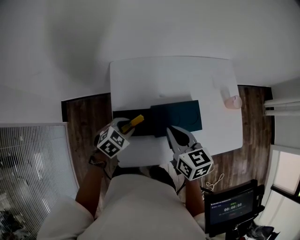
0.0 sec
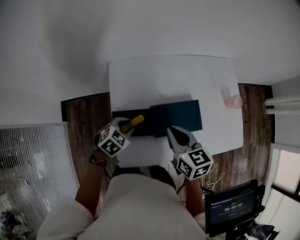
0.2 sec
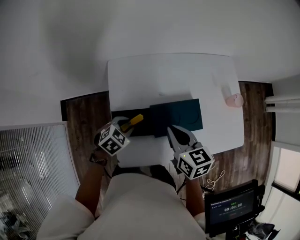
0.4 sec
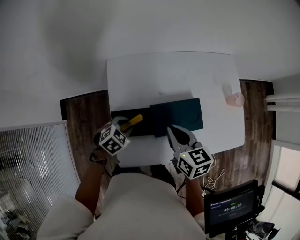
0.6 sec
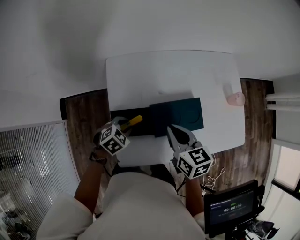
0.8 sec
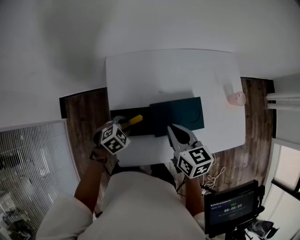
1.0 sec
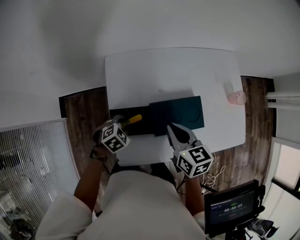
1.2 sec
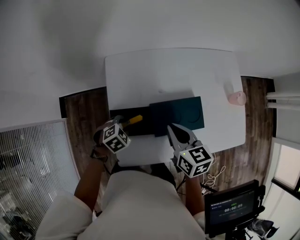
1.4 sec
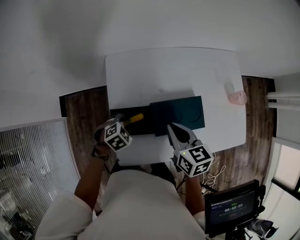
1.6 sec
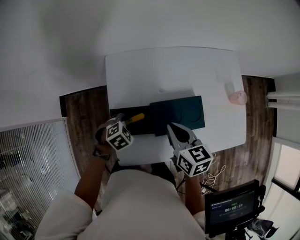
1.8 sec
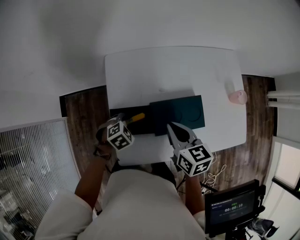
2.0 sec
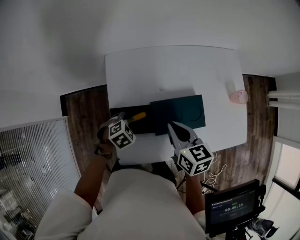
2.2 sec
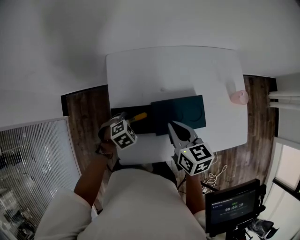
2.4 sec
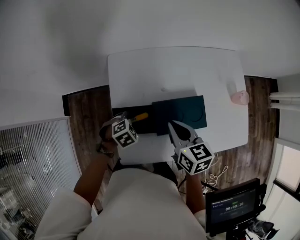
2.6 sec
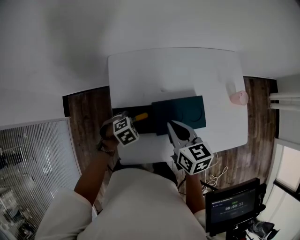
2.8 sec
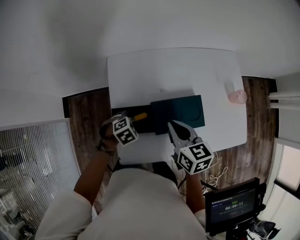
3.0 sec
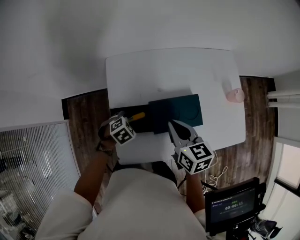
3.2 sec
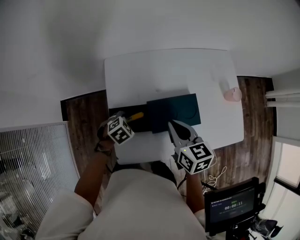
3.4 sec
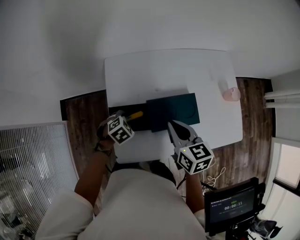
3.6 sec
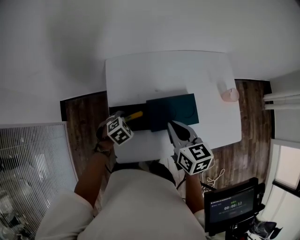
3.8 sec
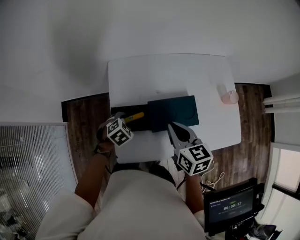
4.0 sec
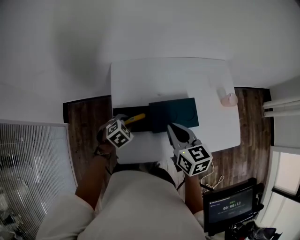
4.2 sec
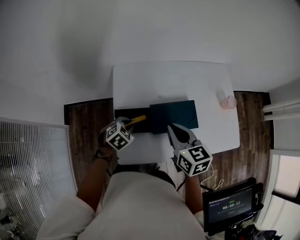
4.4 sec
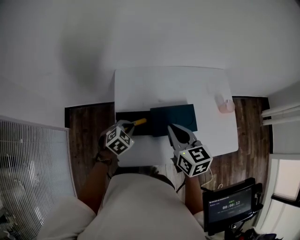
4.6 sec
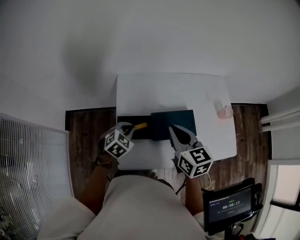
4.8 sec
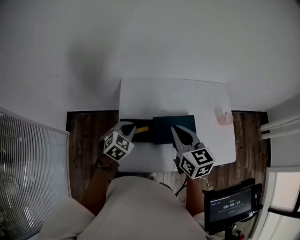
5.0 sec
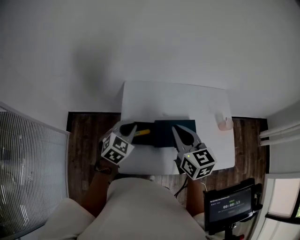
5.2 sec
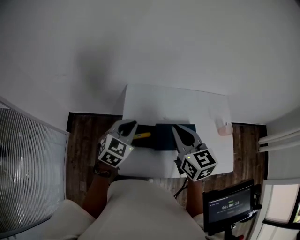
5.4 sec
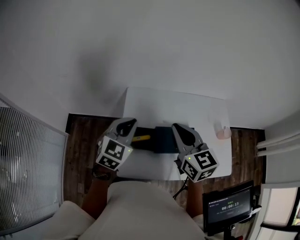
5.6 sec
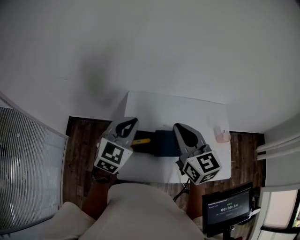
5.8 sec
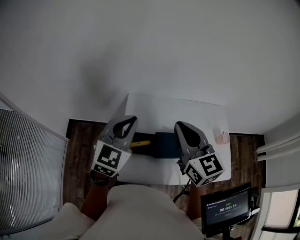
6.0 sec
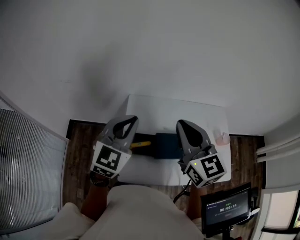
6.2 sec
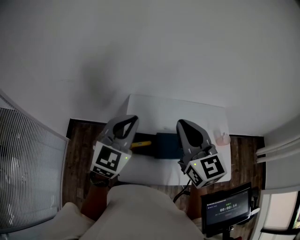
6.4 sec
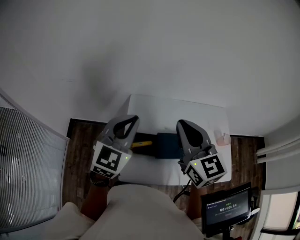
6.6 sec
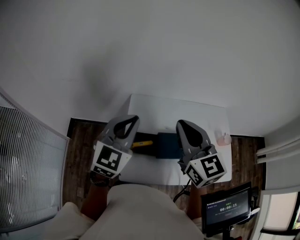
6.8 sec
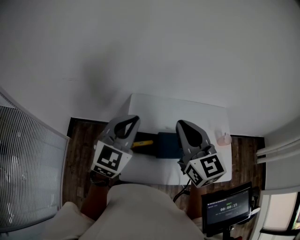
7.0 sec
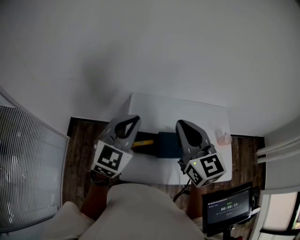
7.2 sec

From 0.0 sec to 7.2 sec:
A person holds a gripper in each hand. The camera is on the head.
From 0.0 sec to 1.4 sec: The left gripper travels downward by about 5 cm.
From 1.4 sec to 4.4 sec: The grippers make only small movements.
From 4.4 sec to 5.8 sec: The right gripper travels upward by roughly 15 cm, and swivels about 30 degrees. The left gripper moves upward, roughly 25 cm, and tips its fingers upward by roughly 40 degrees.
From 5.8 sec to 7.2 sec: The left gripper is displaced upward by approximately 5 cm.

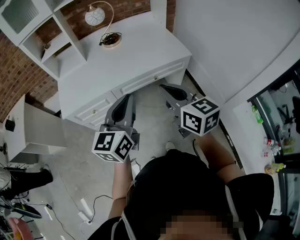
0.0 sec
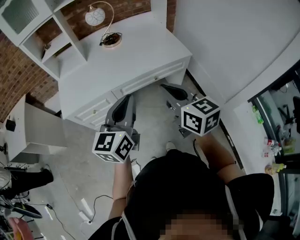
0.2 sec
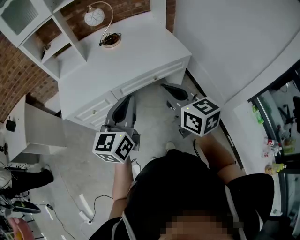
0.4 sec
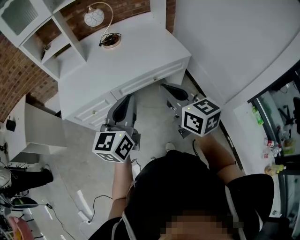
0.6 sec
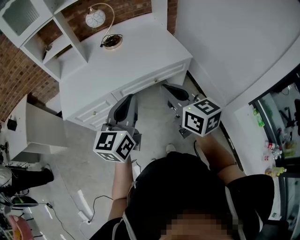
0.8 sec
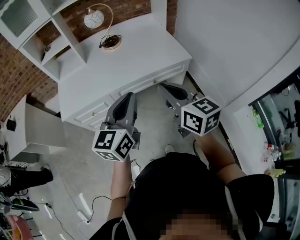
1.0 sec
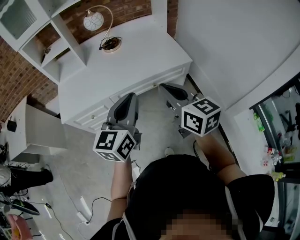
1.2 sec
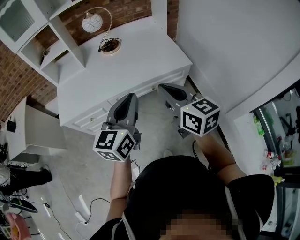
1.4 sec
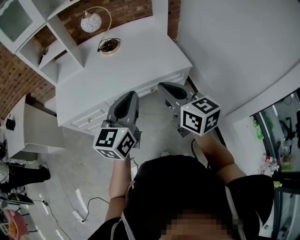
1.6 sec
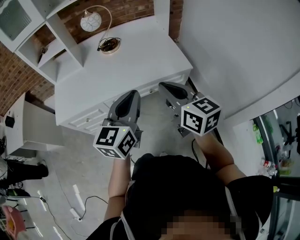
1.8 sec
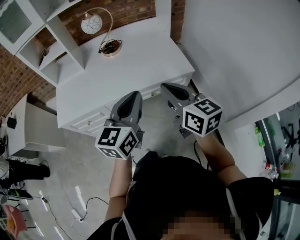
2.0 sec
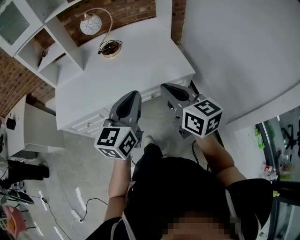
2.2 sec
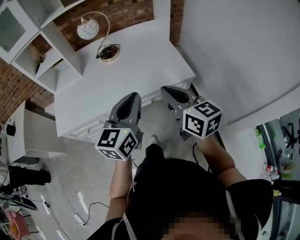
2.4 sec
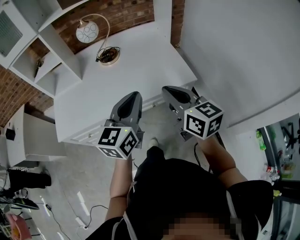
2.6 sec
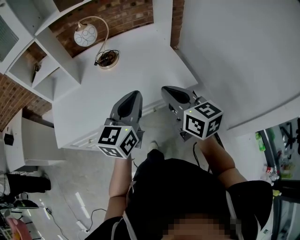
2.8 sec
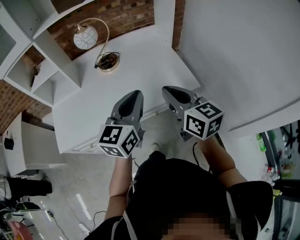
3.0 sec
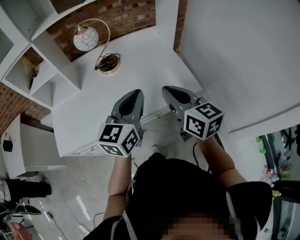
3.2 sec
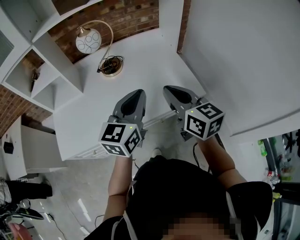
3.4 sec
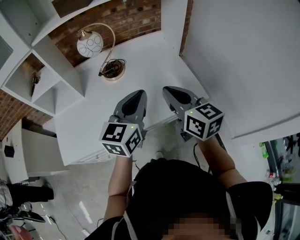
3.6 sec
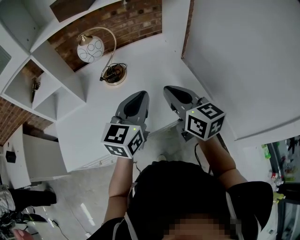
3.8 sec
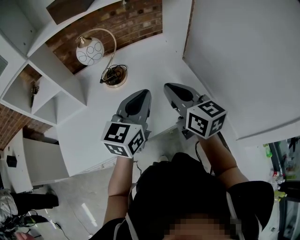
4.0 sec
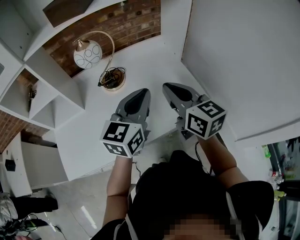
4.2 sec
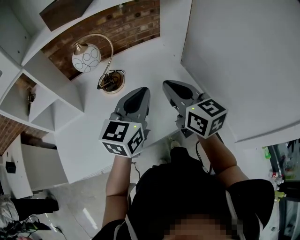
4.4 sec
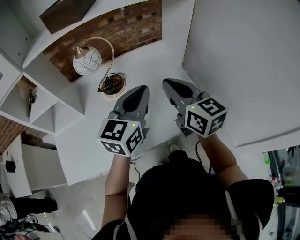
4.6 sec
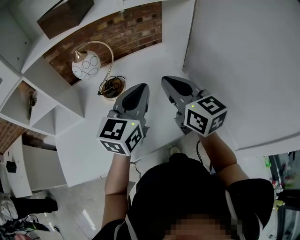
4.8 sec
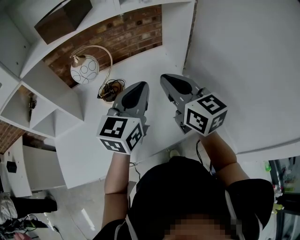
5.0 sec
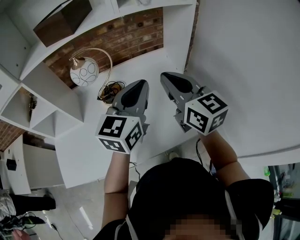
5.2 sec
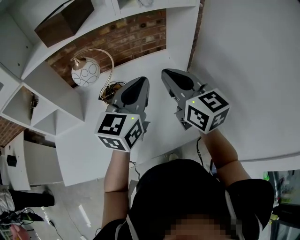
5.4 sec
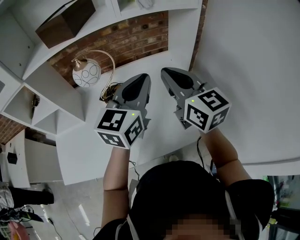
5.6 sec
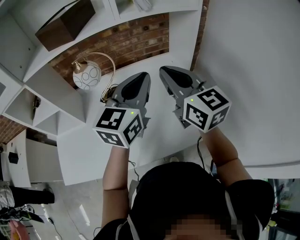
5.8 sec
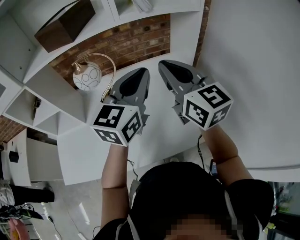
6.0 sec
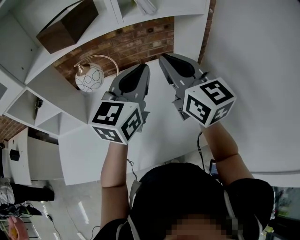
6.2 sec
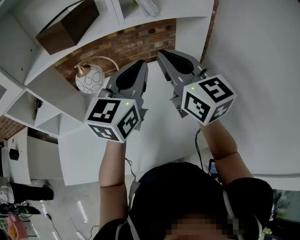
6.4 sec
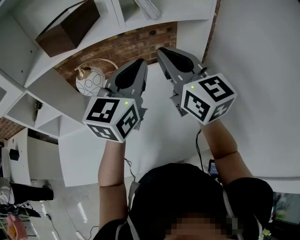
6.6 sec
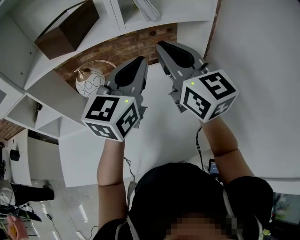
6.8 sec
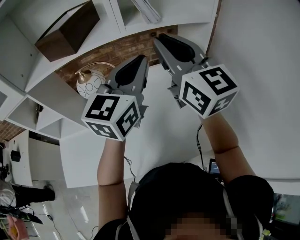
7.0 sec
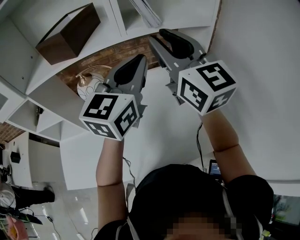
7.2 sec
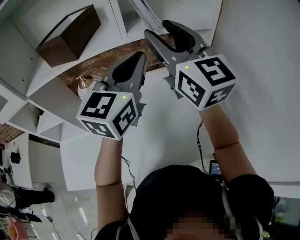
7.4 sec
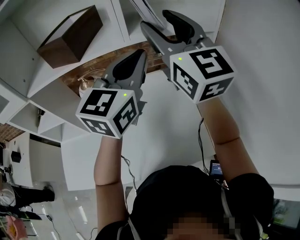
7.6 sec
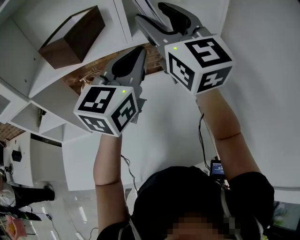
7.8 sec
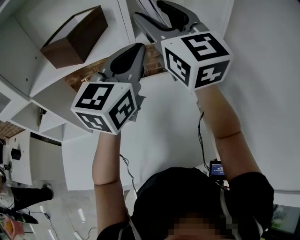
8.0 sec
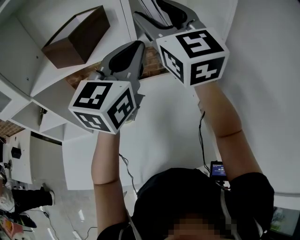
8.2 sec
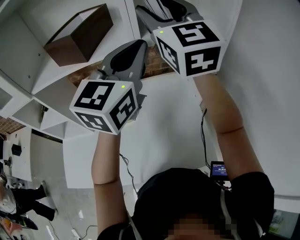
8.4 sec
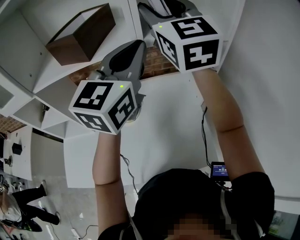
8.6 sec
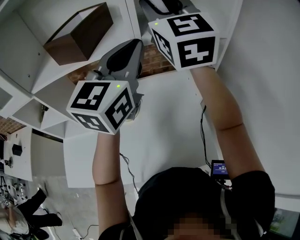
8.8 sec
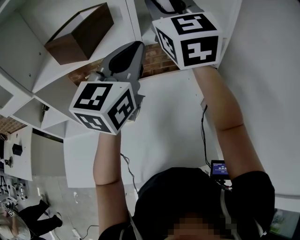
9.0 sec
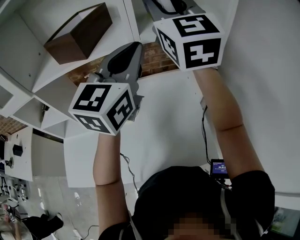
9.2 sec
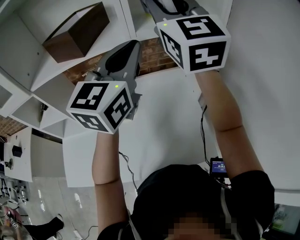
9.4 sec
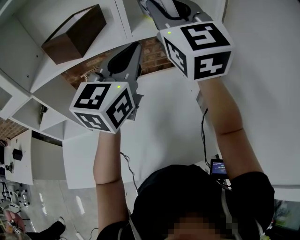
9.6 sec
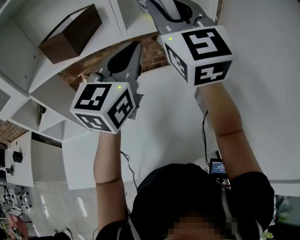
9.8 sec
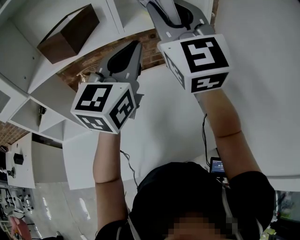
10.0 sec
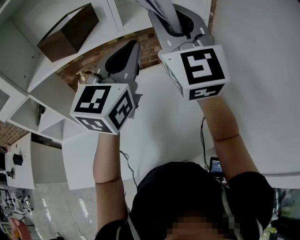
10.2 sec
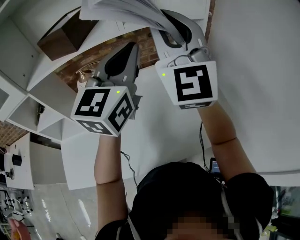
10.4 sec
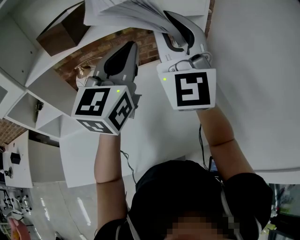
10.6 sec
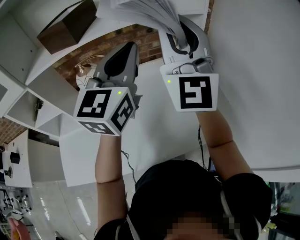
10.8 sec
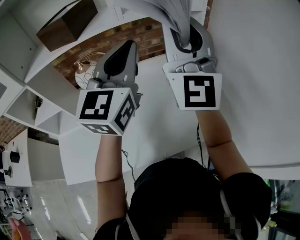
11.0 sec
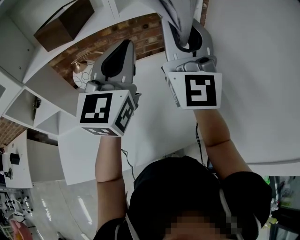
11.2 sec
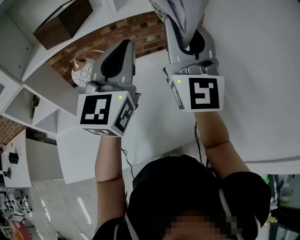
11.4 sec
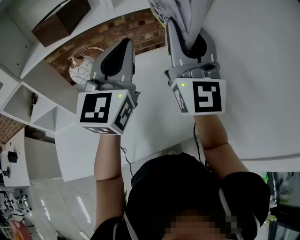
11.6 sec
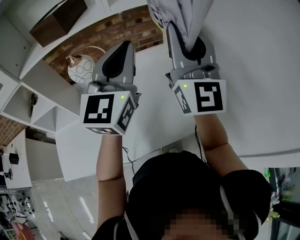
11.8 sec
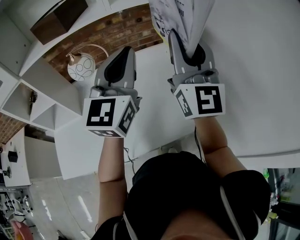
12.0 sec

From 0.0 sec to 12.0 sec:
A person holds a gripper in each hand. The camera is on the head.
From 0.0 sec to 1.6 sec: The right gripper heads forward and to the right, covering approximately 10 cm. Meanwhile the left gripper is displaced to the right and forward by about 10 cm.
From 1.6 sec to 3.0 sec: Both grippers travel together forward, some 15 cm.
From 3.0 sec to 4.4 sec: Both grippers move forward, some 15 cm.
From 4.4 sec to 6.0 sec: The right gripper goes approximately 15 cm forward and upward; the left gripper travels forward, upward and to the right by roughly 15 cm.
From 6.0 sec to 7.6 sec: Both grippers move upward and forward, approximately 15 cm. The right gripper swivels approximately 20 degrees, and opens.
From 7.6 sec to 9.0 sec: The right gripper shifts approximately 5 cm forward, and closes.
From 9.0 sec to 10.4 sec: The right gripper heads backward and to the right, covering about 15 cm; the left gripper is displaced backward by about 5 cm.
From 10.4 sec to 12.0 sec: The right gripper heads downward, backward and to the right, covering approximately 15 cm, while the left gripper shifts roughly 10 cm backward and downward.

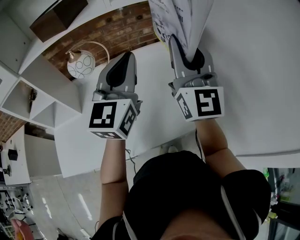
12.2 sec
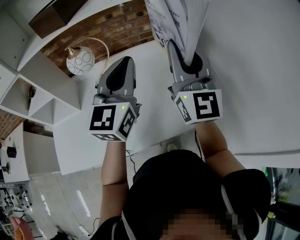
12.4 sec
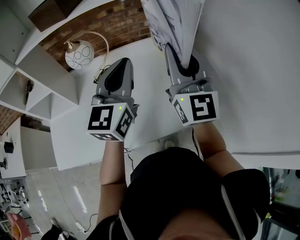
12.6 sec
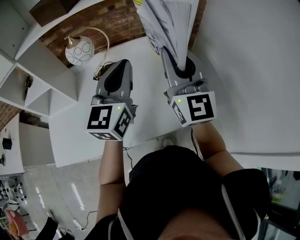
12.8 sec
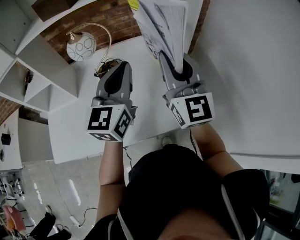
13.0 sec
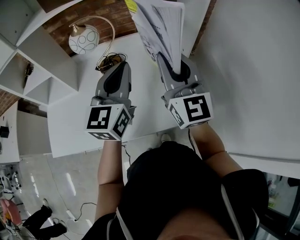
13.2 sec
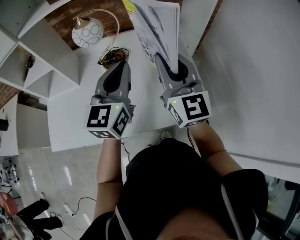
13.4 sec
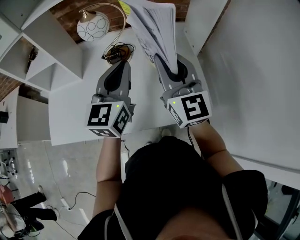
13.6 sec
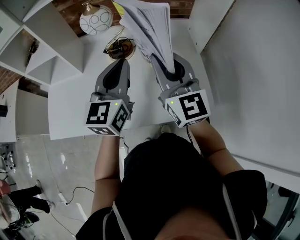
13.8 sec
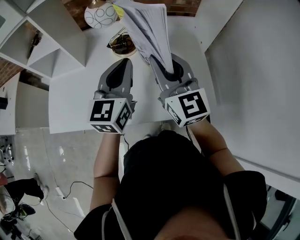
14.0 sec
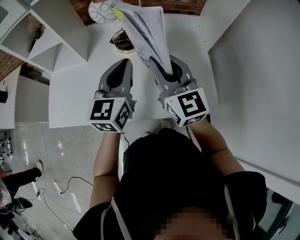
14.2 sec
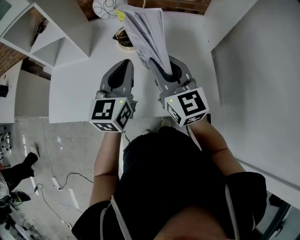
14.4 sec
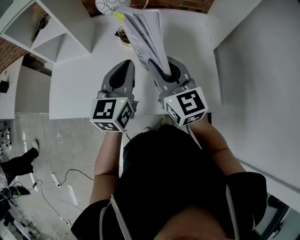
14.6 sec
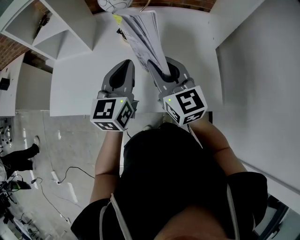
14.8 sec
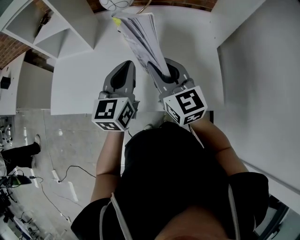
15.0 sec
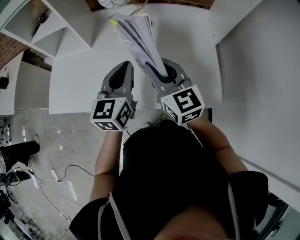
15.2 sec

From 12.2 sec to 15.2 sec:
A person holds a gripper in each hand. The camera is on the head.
From 12.2 sec to 13.8 sec: Both grippers move downward and to the left, about 20 cm. The right gripper changes its angle by approximately 30 degrees.
From 13.8 sec to 15.2 sec: Both grippers travel together downward and to the left, about 10 cm. The right gripper turns by approximately 20 degrees.

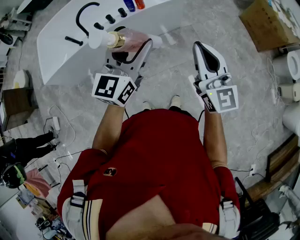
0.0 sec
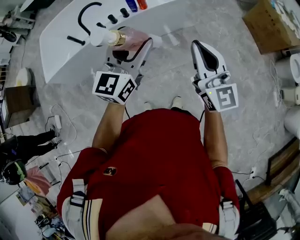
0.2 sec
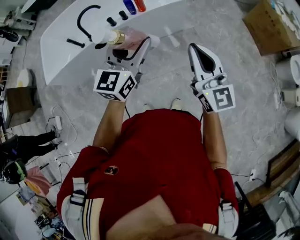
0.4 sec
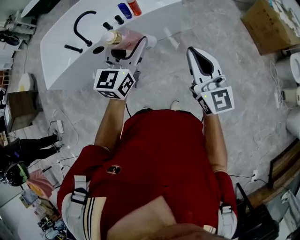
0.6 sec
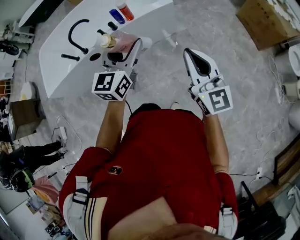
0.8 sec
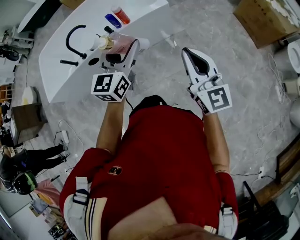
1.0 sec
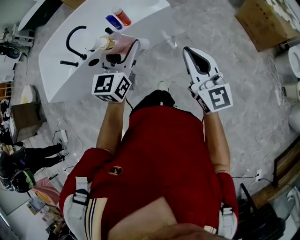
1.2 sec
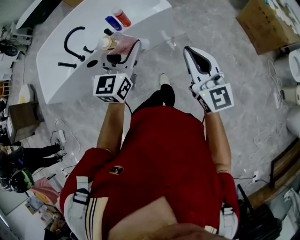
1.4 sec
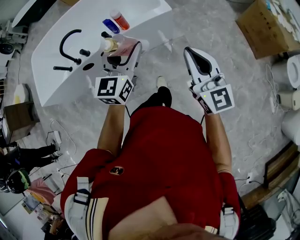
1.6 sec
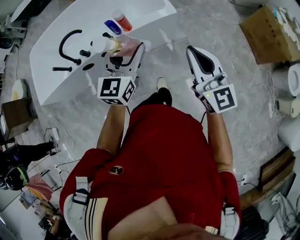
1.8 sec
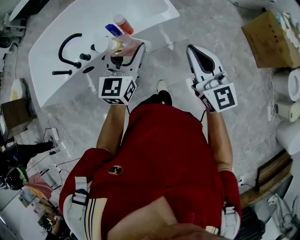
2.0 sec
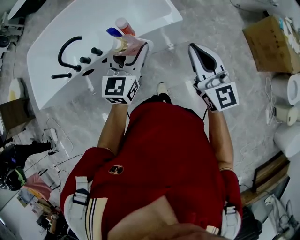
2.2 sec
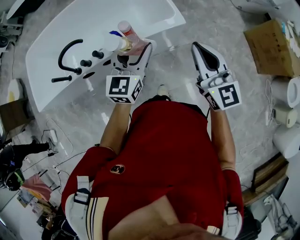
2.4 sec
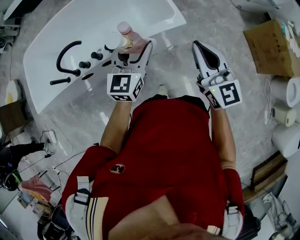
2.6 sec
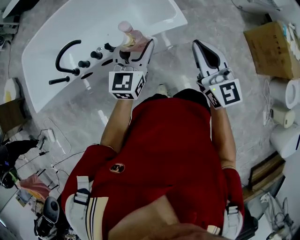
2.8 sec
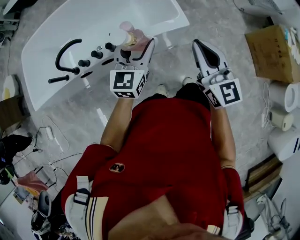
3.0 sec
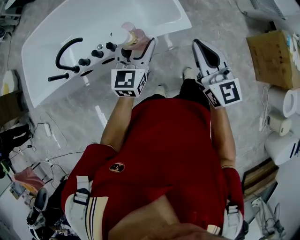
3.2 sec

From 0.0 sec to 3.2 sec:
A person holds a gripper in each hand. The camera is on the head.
From 0.0 sec to 1.6 sec: The grippers both shift forward and to the right by approximately 20 cm.
From 1.6 sec to 3.2 sec: The two grippers go about 25 cm forward.
